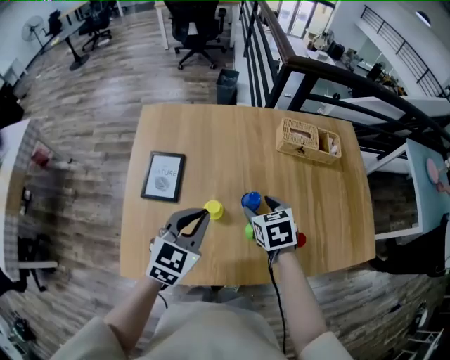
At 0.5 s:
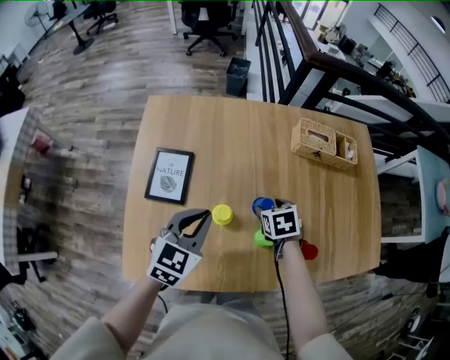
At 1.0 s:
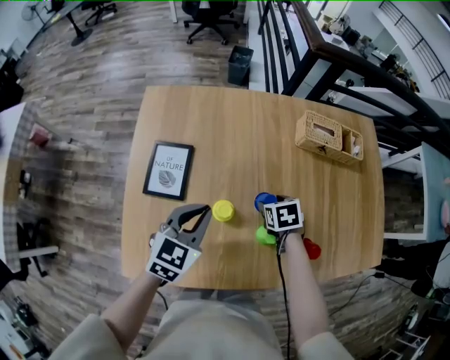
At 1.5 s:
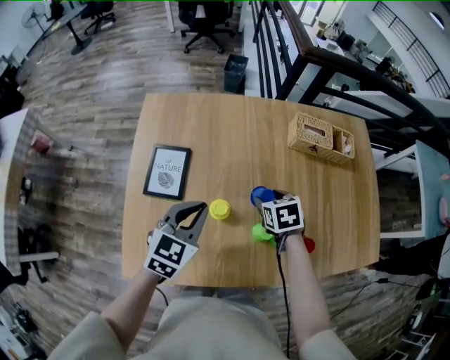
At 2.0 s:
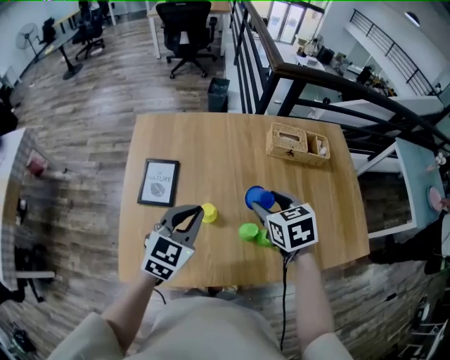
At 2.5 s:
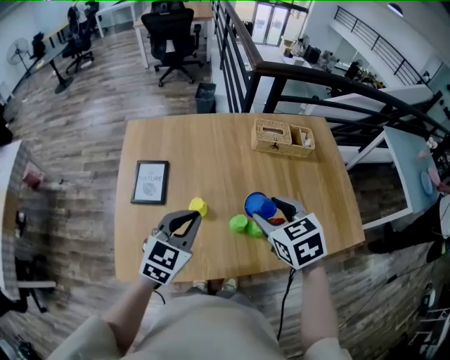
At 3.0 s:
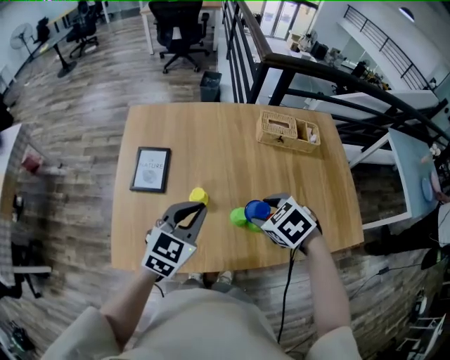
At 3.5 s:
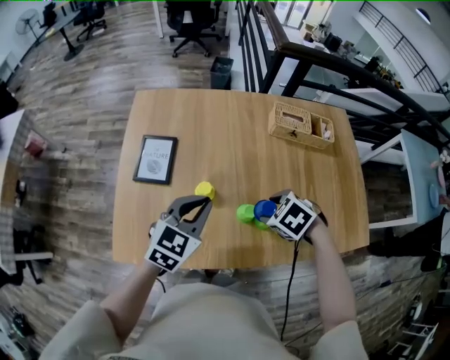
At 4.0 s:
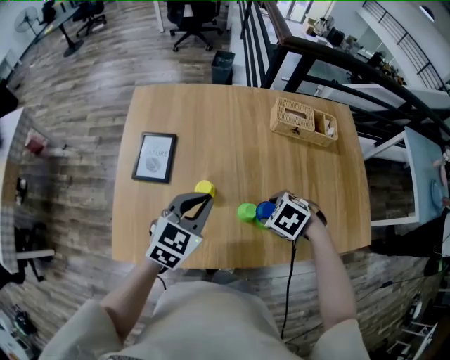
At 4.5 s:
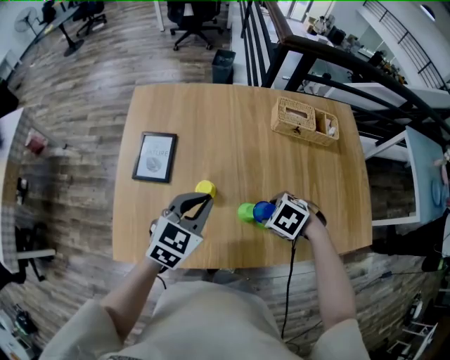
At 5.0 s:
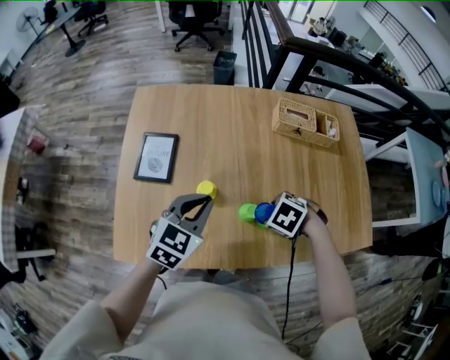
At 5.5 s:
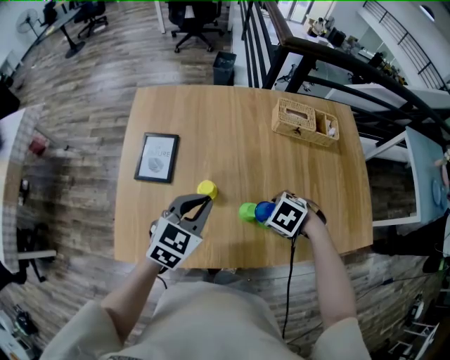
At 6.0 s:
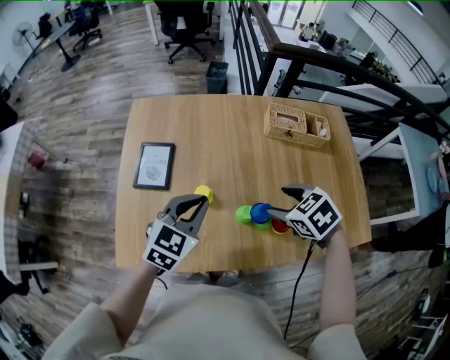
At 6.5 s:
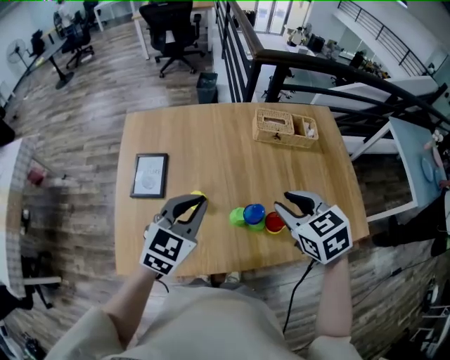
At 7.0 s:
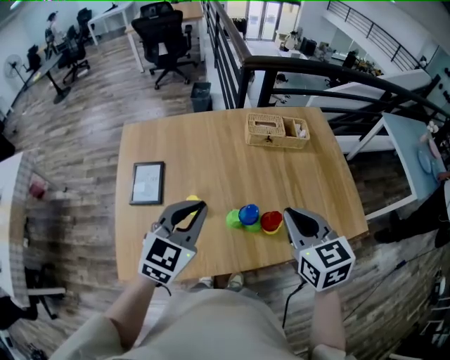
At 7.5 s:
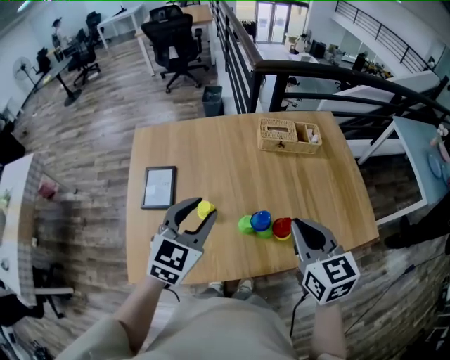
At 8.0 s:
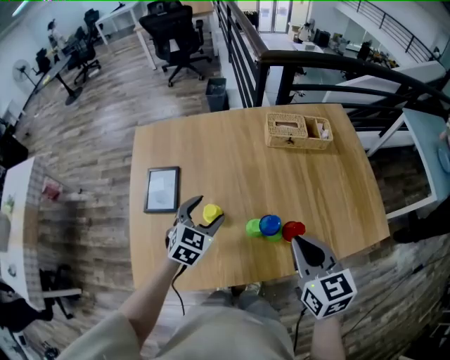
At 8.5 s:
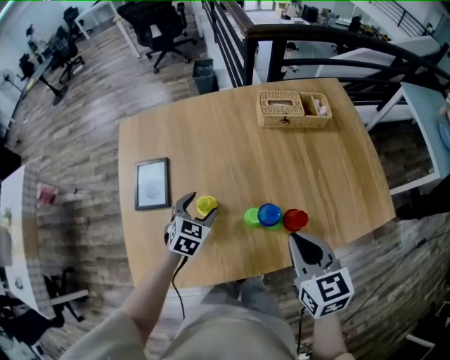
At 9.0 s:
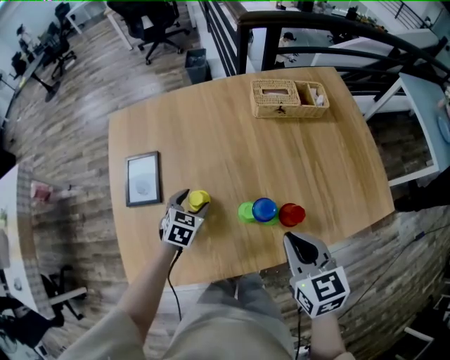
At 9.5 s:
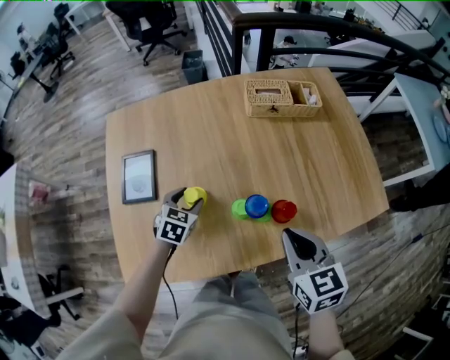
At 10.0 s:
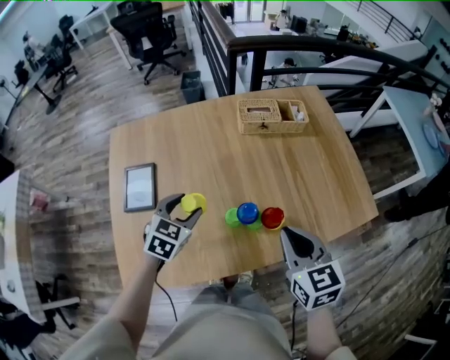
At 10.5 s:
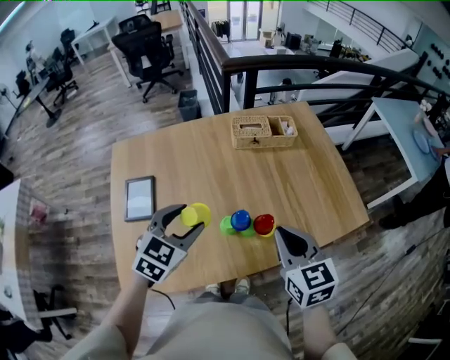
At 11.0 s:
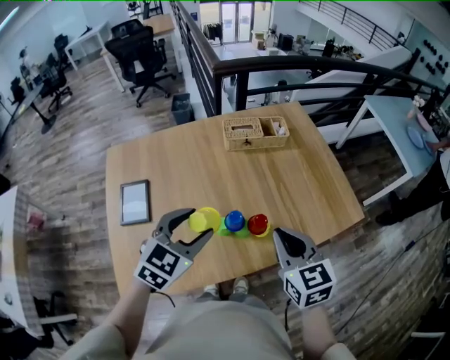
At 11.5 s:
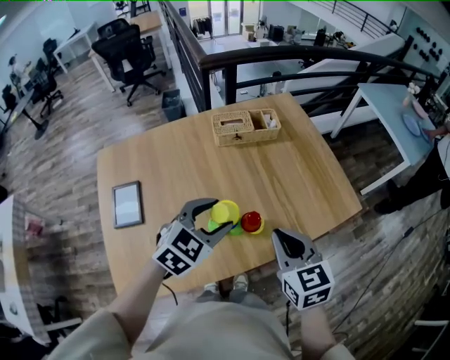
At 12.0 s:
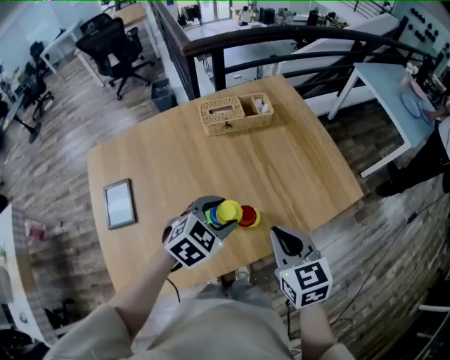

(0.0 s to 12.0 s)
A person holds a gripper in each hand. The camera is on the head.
0.0 s - 2.0 s: The right gripper shifts some 10 cm upward, while the left gripper goes downward and returns, some 5 cm each way.
2.0 s - 4.0 s: The right gripper shifts roughly 10 cm downward, and points its fingers roughly 30 degrees further downward; the left gripper shifts by approximately 5 cm.
4.0 s - 6.0 s: The right gripper shifts about 10 cm upward, and swivels about 30 degrees.
6.0 s - 8.0 s: The right gripper shifts about 10 cm backward and upward, tilts its fingers approximately 30 degrees upward, and closes up, while the left gripper travels downward by about 10 cm, and opens its fingers.
8.0 s - 10.0 s: The left gripper moves about 15 cm downward and comes back.
10.0 s - 12.0 s: The right gripper is displaced to the right by some 5 cm; the left gripper heads to the right, covering about 20 cm, and turns by some 30 degrees.

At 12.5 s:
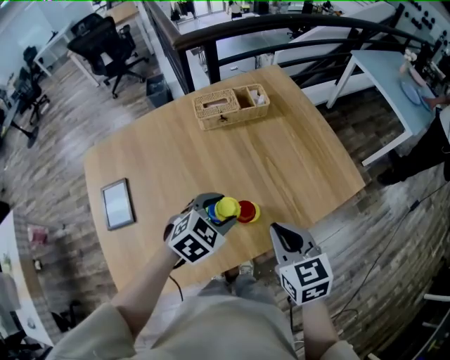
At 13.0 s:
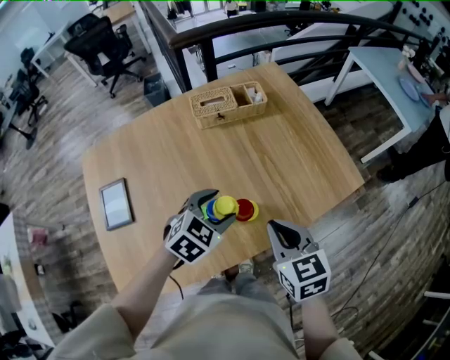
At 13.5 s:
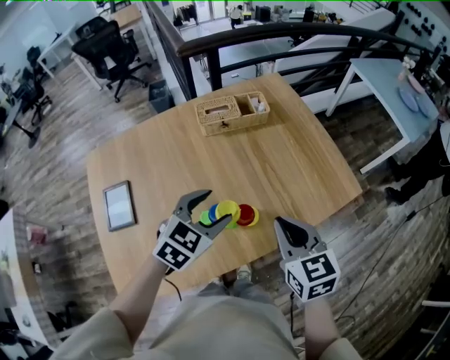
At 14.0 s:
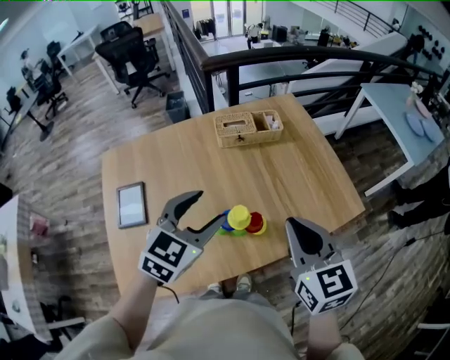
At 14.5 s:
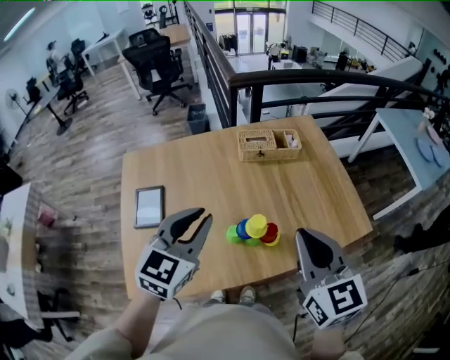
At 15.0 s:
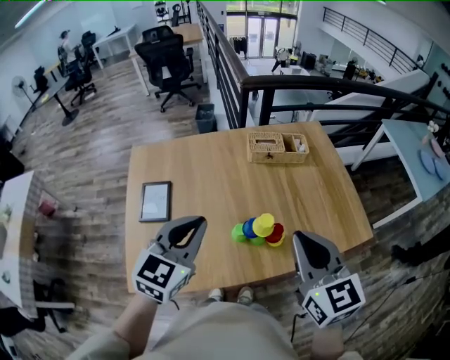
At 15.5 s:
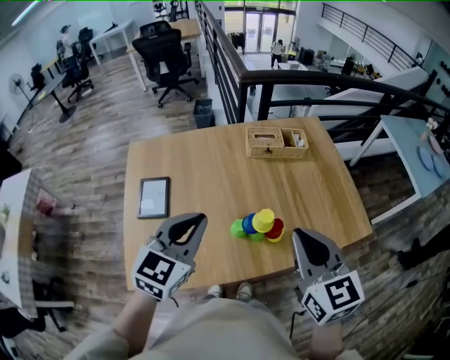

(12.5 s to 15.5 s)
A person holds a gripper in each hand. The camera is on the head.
12.5 s - 14.0 s: The right gripper goes some 15 cm upward. The left gripper goes some 20 cm upward and to the left, and changes its angle by about 30 degrees.
14.0 s - 15.5 s: The right gripper heads to the left, covering some 5 cm. Meanwhile the left gripper heads to the left and backward, covering approximately 10 cm, and closes up.

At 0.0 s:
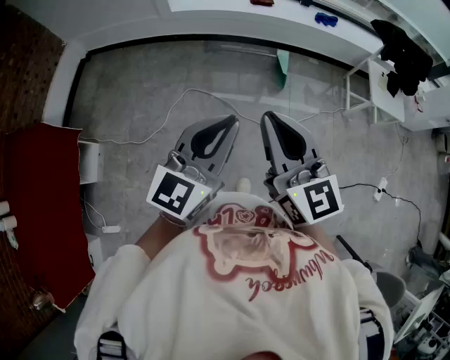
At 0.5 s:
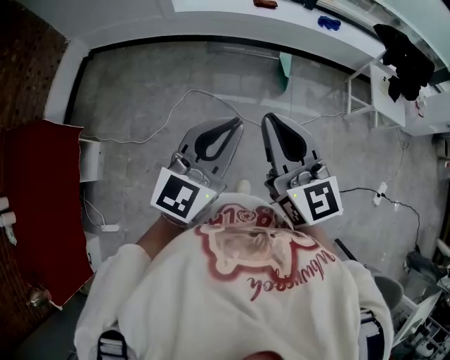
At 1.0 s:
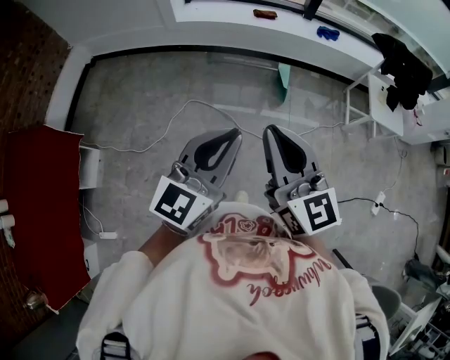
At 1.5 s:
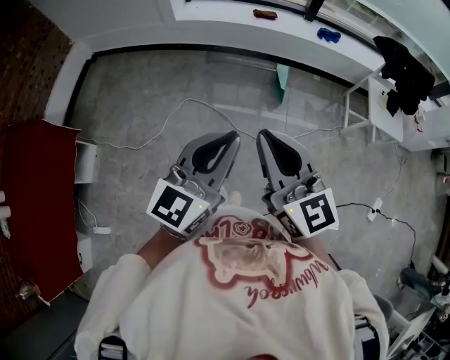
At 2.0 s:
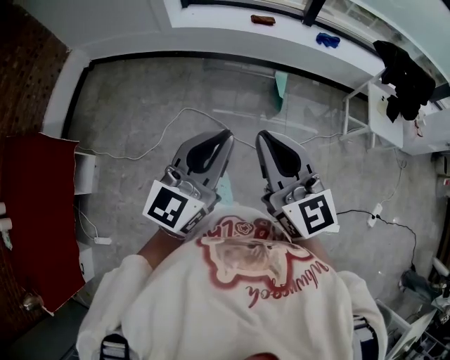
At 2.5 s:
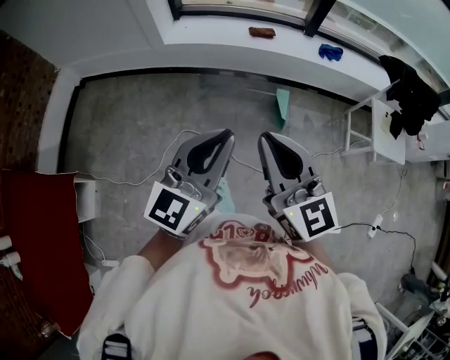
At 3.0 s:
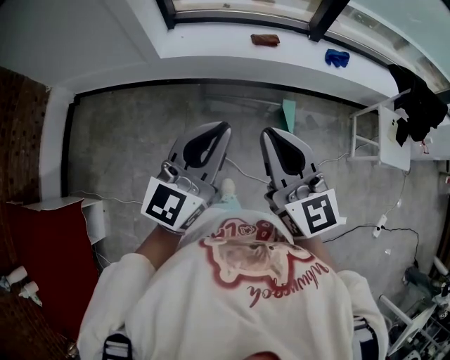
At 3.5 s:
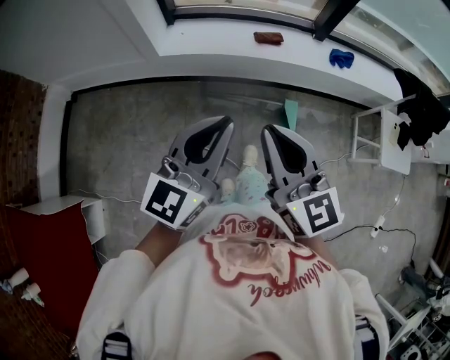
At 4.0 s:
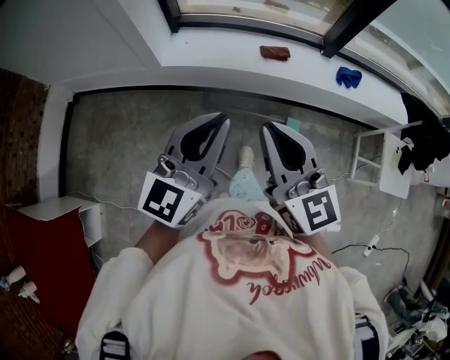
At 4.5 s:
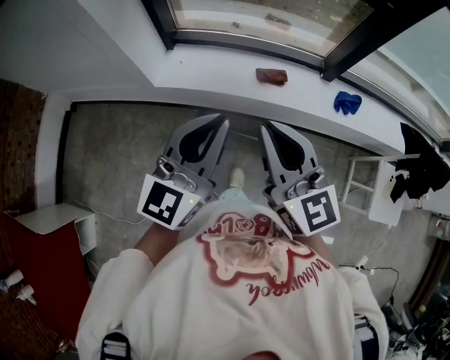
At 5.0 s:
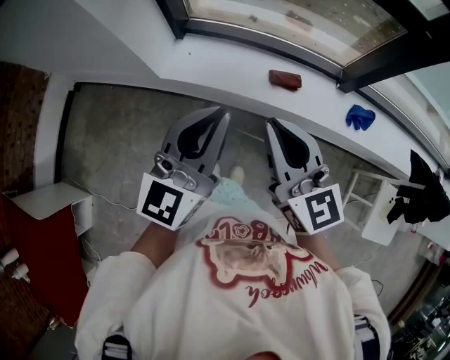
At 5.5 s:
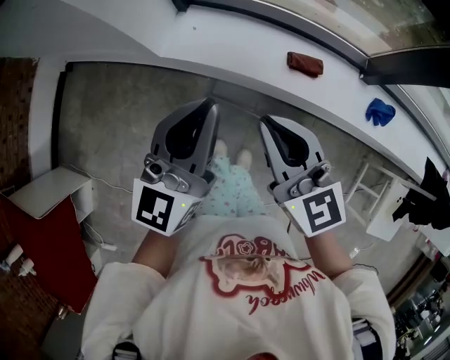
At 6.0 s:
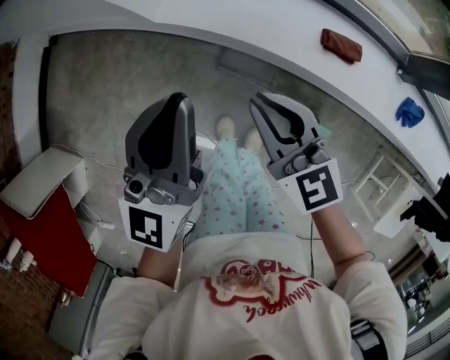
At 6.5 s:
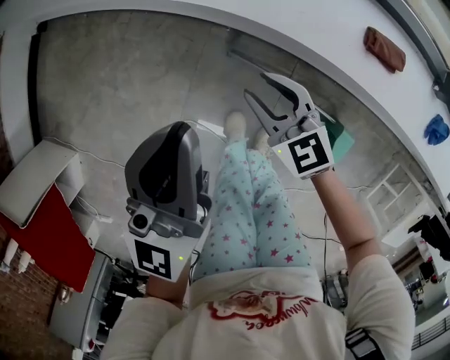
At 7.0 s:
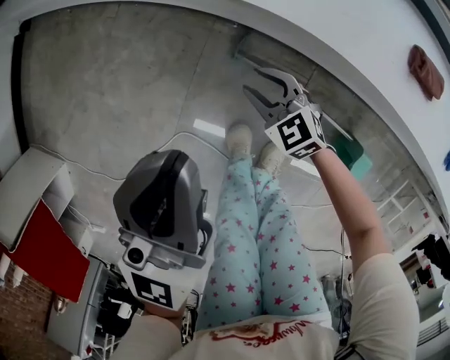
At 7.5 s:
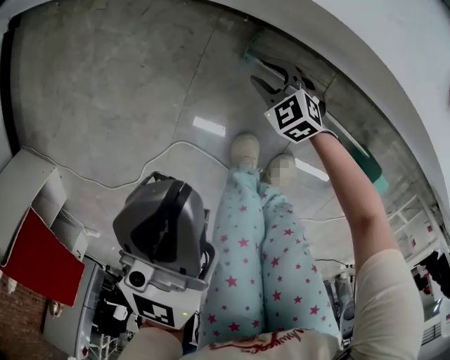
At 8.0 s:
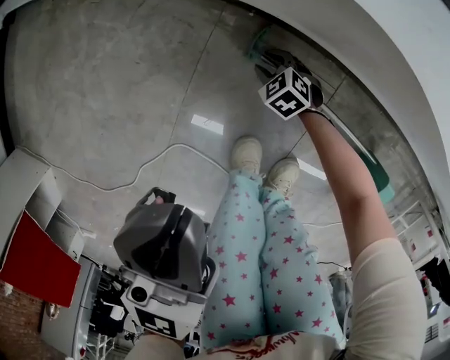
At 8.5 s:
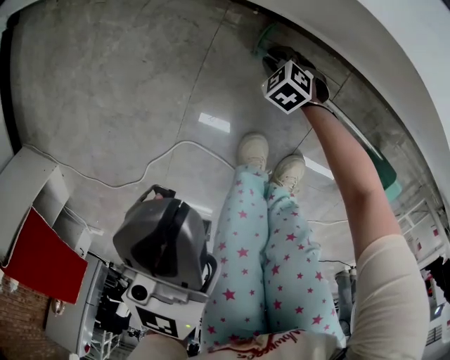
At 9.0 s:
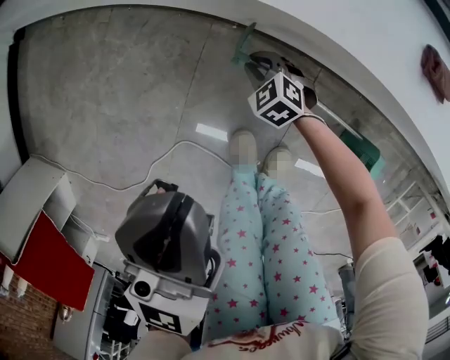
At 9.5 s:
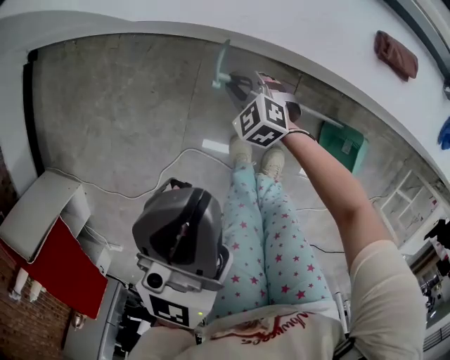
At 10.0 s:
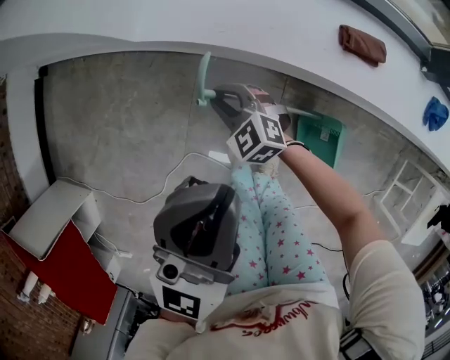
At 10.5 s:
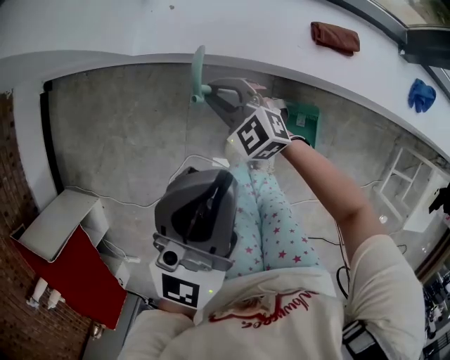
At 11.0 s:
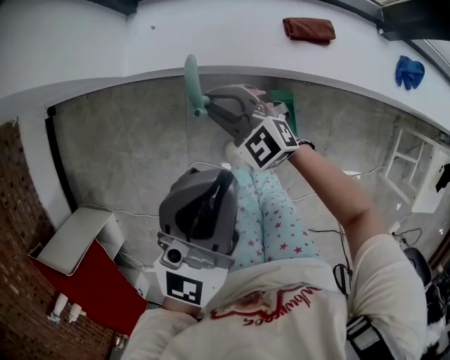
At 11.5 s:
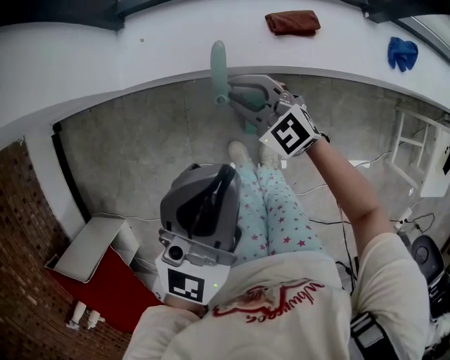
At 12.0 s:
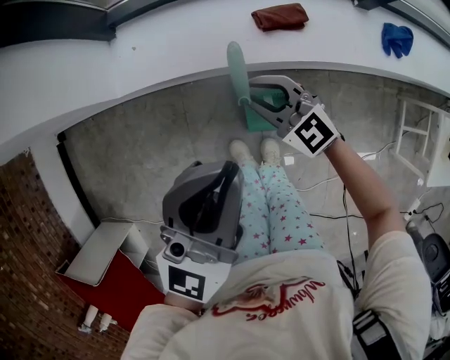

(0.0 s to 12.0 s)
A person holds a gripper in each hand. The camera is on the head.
0.0 s - 2.0 s: The two grippers go about 5 cm forward.
2.0 s - 4.0 s: Both grippers are carried forward, approximately 50 cm.
4.0 s - 6.0 s: The left gripper moves approximately 40 cm, and turns by some 30 degrees, while the right gripper shifts by some 40 cm, and rotates approximately 30 degrees.
6.0 s - 8.0 s: The left gripper heads downward, covering about 35 cm. Meanwhile the right gripper moves downward, some 70 cm, points its fingers some 50 degrees further downward, and opens.
8.0 s - 10.0 s: The left gripper is displaced upward and to the right by approximately 30 cm. Meanwhile the right gripper heads upward, covering some 40 cm, and swivels some 30 degrees.
10.0 s - 12.0 s: The left gripper shifts some 15 cm to the right and upward, and changes its angle by some 20 degrees. Meanwhile the right gripper is displaced to the right and upward by approximately 30 cm, and rotates roughly 20 degrees.
